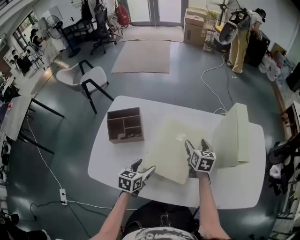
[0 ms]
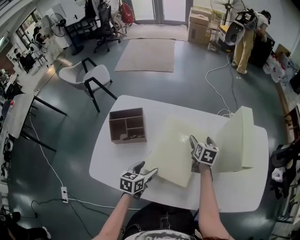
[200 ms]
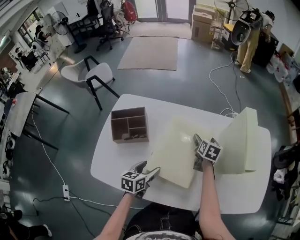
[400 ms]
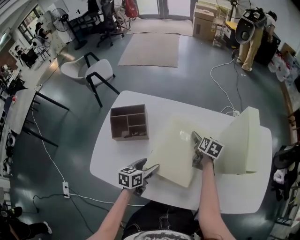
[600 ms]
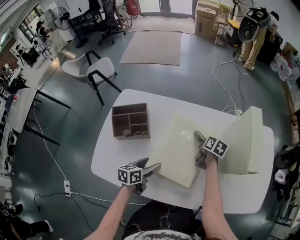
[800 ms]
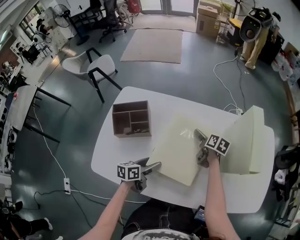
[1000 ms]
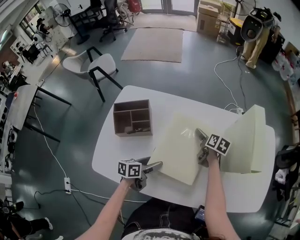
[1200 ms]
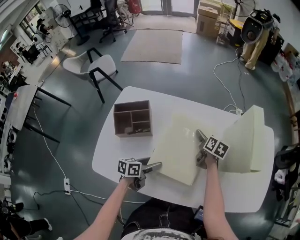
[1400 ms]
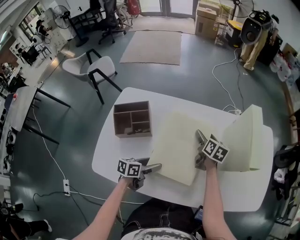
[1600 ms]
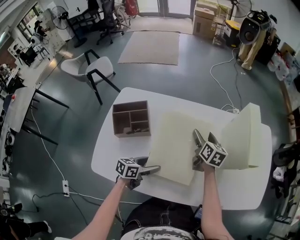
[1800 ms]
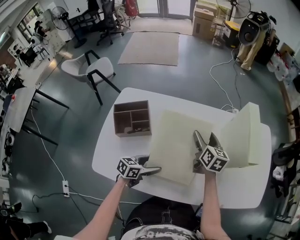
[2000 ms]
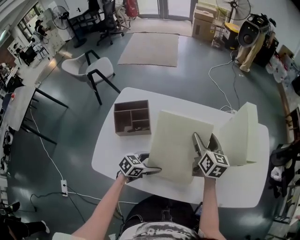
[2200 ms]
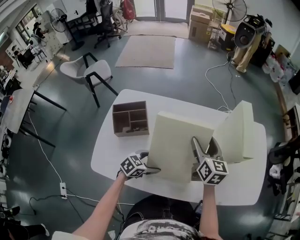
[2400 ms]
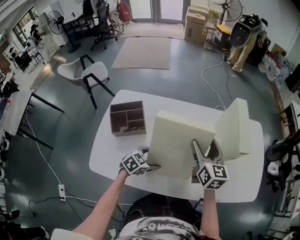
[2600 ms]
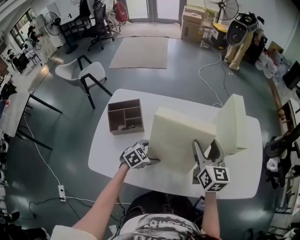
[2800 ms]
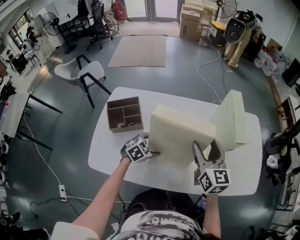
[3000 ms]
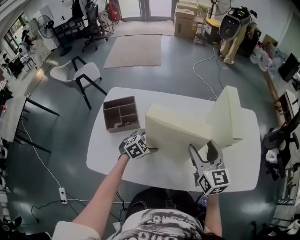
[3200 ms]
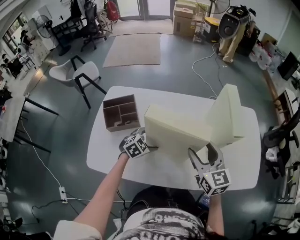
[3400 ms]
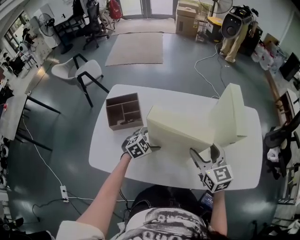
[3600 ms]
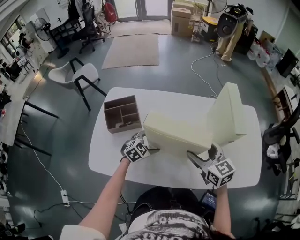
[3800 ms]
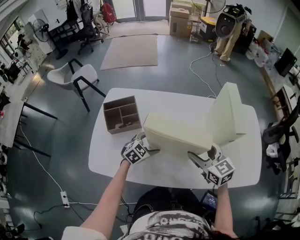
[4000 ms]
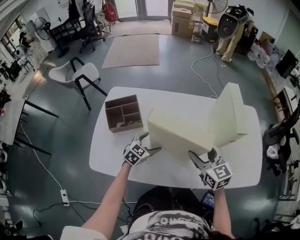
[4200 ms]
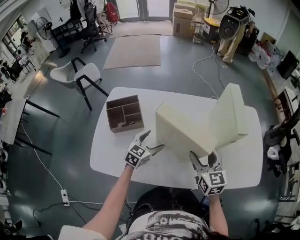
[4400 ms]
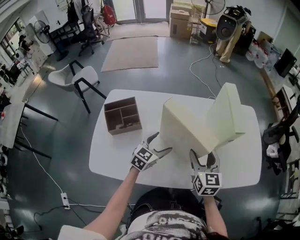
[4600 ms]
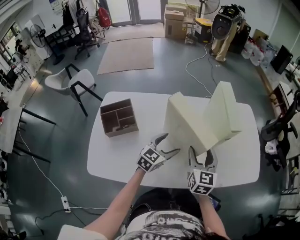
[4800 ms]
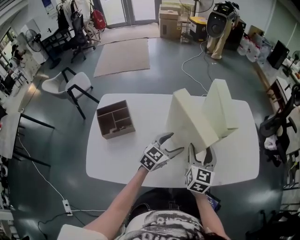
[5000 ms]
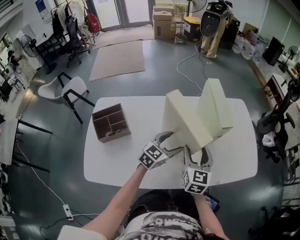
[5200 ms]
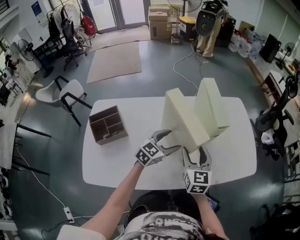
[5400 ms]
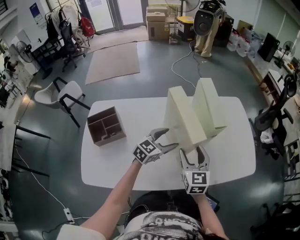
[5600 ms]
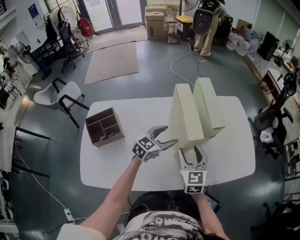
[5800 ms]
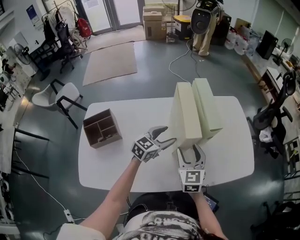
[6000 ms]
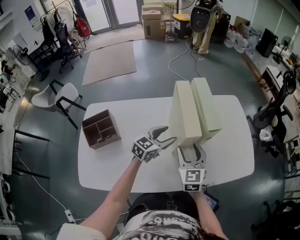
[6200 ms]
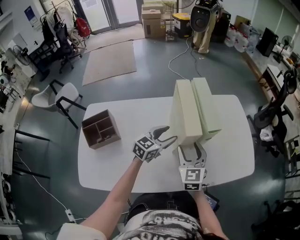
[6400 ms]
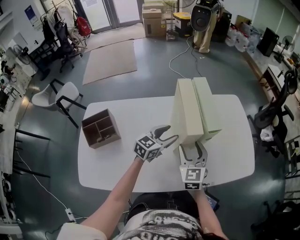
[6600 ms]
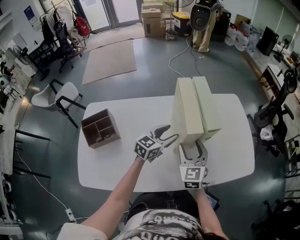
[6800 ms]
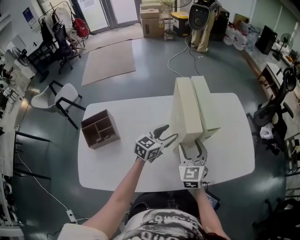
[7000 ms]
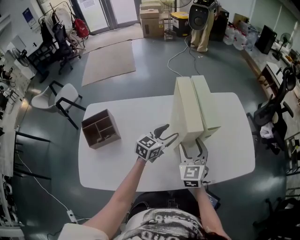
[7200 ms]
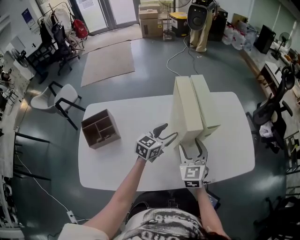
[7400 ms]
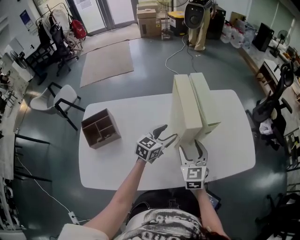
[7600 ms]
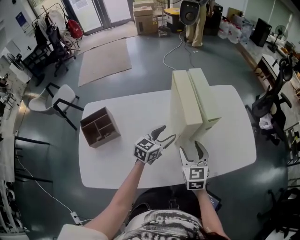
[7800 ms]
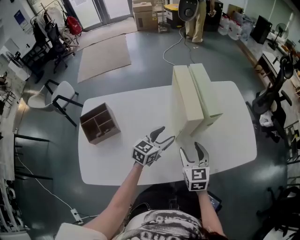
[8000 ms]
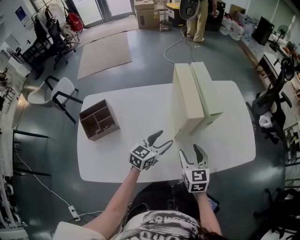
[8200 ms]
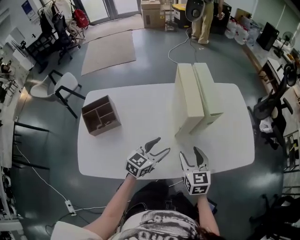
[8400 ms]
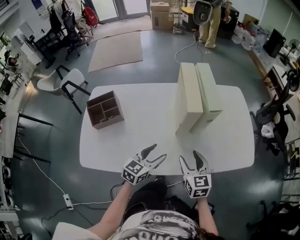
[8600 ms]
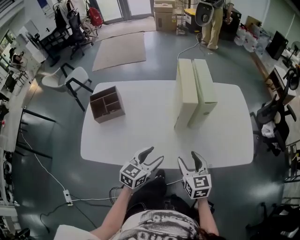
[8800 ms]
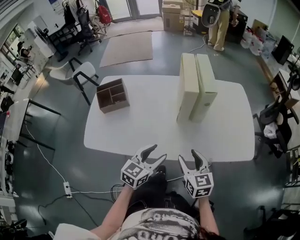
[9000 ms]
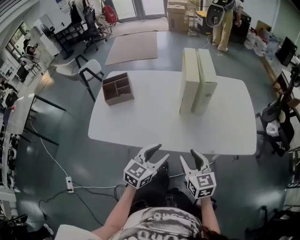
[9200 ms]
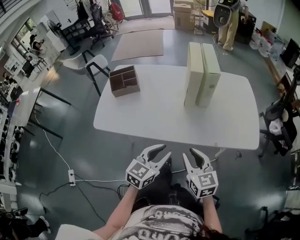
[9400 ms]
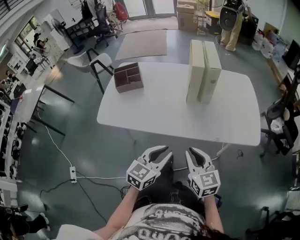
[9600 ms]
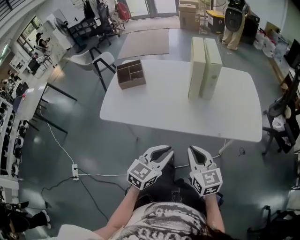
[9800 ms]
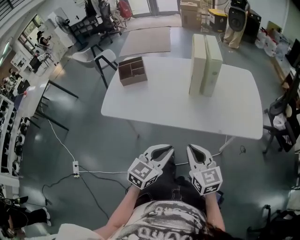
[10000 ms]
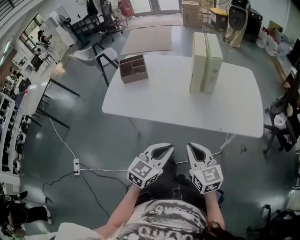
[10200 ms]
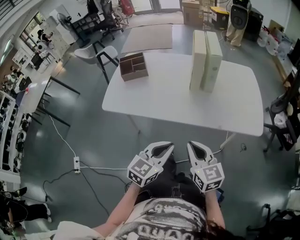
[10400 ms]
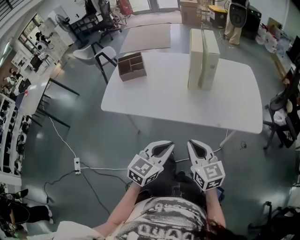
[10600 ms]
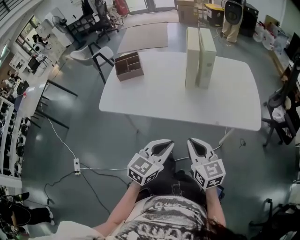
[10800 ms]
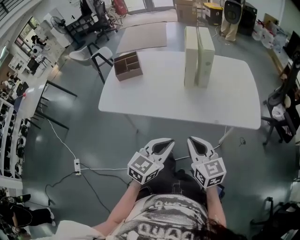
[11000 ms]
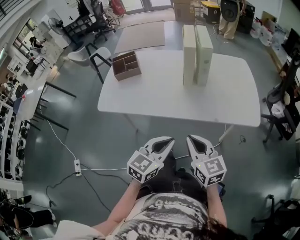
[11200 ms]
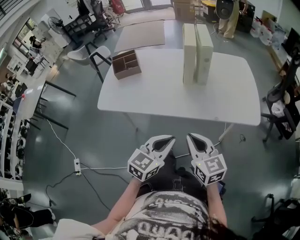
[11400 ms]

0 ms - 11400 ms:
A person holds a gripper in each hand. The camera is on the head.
0 ms - 1400 ms: The left gripper changes its angle by some 30 degrees. Meanwhile the right gripper heads downward and forward, covering some 10 cm, and turns by approximately 20 degrees.
1400 ms - 2800 ms: The right gripper shifts approximately 25 cm upward and backward, and rotates some 40 degrees, while the left gripper shifts by approximately 5 cm, and rolls clockwise, seen from behind, by some 60 degrees.
2800 ms - 4200 ms: The right gripper shifts roughly 10 cm backward and downward, and changes its angle by about 20 degrees.
4200 ms - 5600 ms: The right gripper changes place by some 5 cm, and rotates about 30 degrees, while the left gripper moves roughly 20 cm, and swivels approximately 20 degrees.
5600 ms - 7200 ms: The left gripper ends up about 5 cm from where it was.
7200 ms - 8600 ms: The right gripper is displaced backward by roughly 10 cm, and swivels some 20 degrees. The left gripper heads backward, covering approximately 20 cm.
8600 ms - 10000 ms: The grippers both shift backward by approximately 25 cm. The left gripper closes its fingers, while the right gripper changes its angle by some 20 degrees, and closes its fingers.
10000 ms - 11400 ms: The grippers make only small movements.

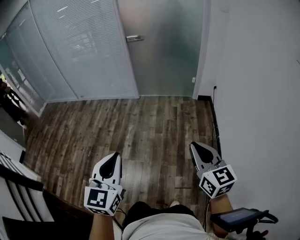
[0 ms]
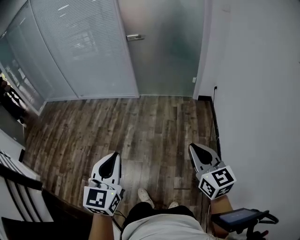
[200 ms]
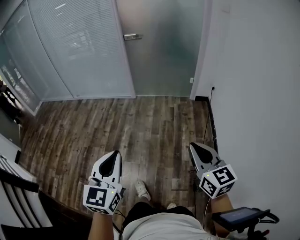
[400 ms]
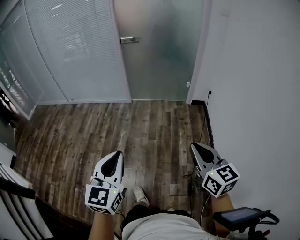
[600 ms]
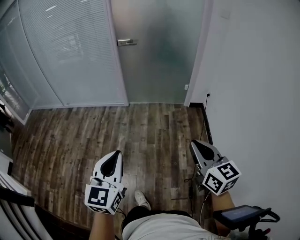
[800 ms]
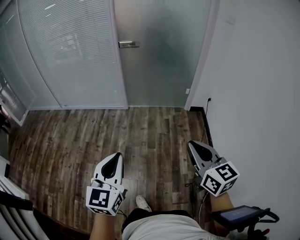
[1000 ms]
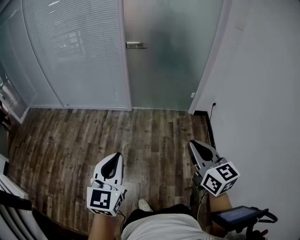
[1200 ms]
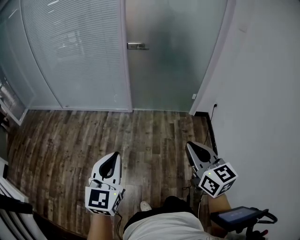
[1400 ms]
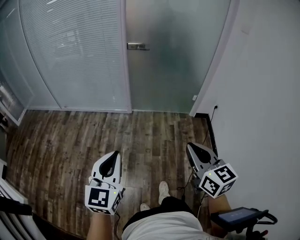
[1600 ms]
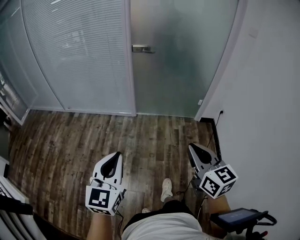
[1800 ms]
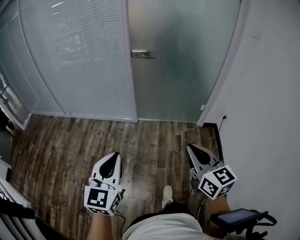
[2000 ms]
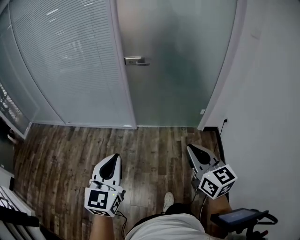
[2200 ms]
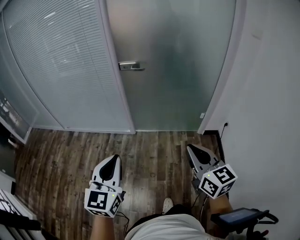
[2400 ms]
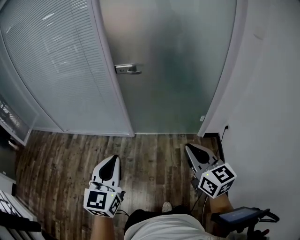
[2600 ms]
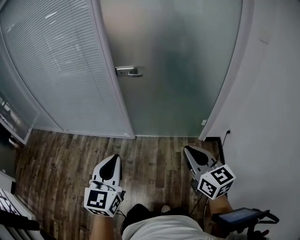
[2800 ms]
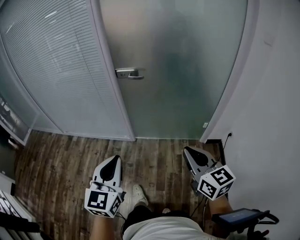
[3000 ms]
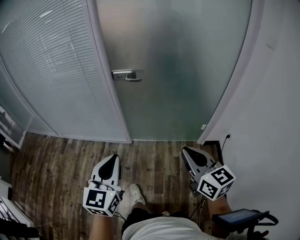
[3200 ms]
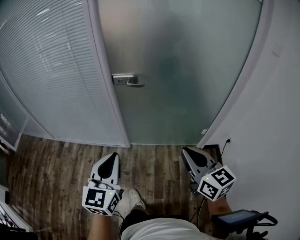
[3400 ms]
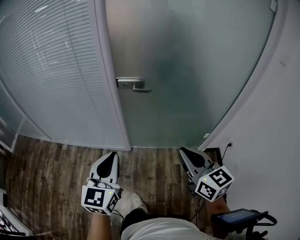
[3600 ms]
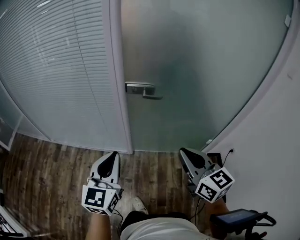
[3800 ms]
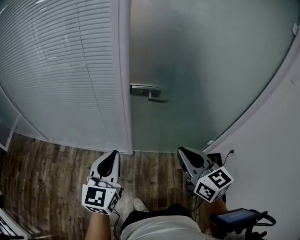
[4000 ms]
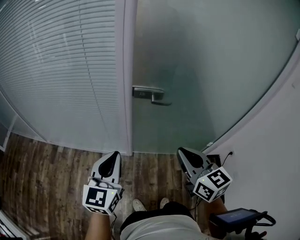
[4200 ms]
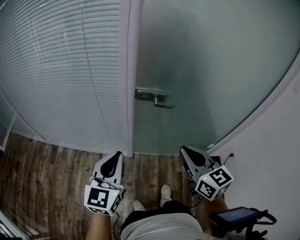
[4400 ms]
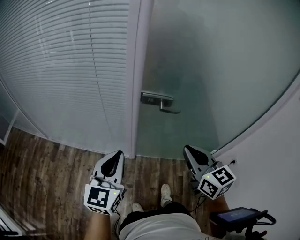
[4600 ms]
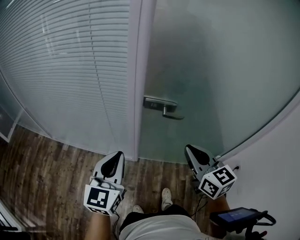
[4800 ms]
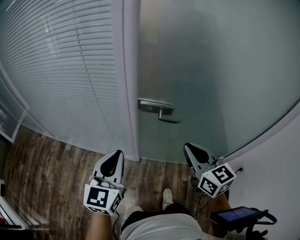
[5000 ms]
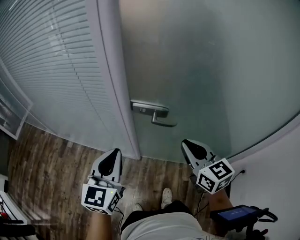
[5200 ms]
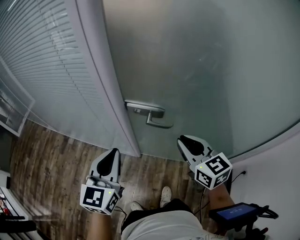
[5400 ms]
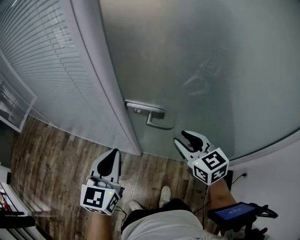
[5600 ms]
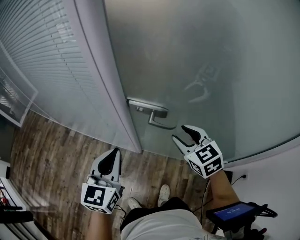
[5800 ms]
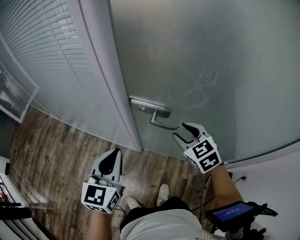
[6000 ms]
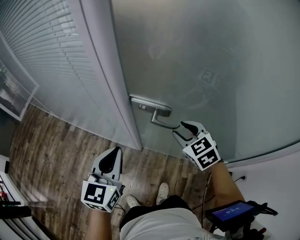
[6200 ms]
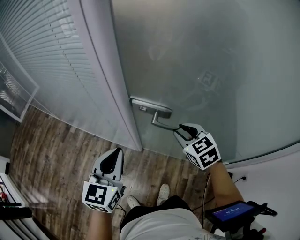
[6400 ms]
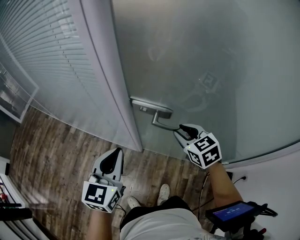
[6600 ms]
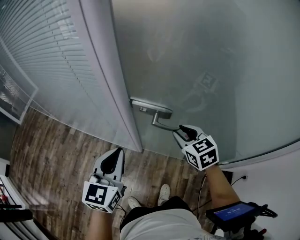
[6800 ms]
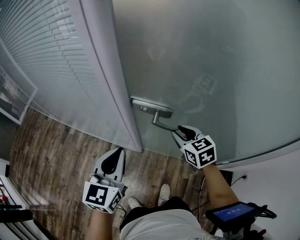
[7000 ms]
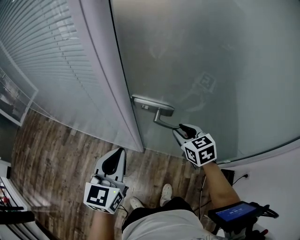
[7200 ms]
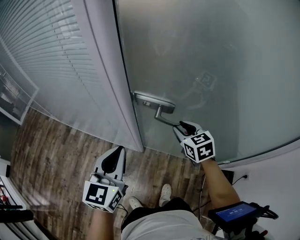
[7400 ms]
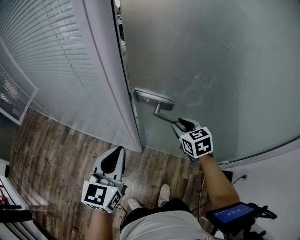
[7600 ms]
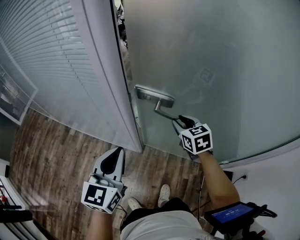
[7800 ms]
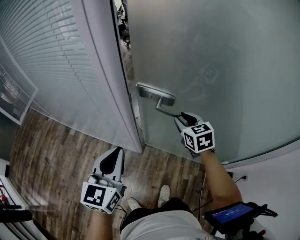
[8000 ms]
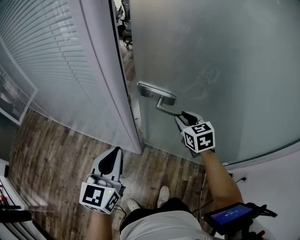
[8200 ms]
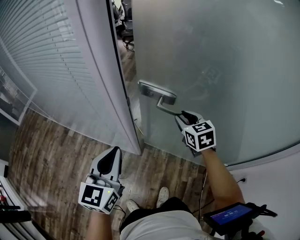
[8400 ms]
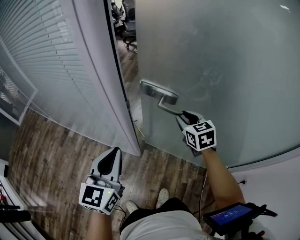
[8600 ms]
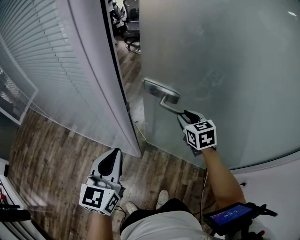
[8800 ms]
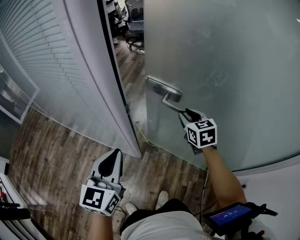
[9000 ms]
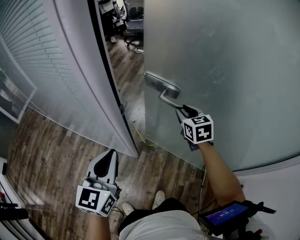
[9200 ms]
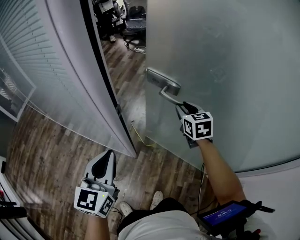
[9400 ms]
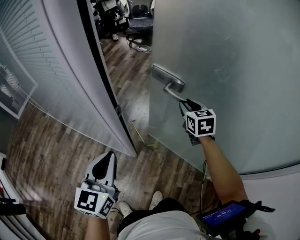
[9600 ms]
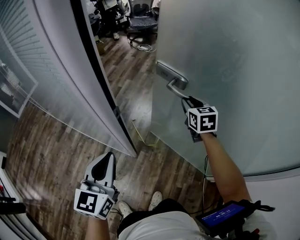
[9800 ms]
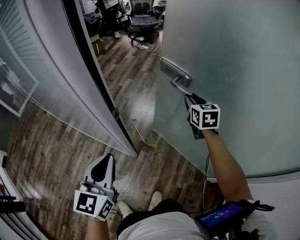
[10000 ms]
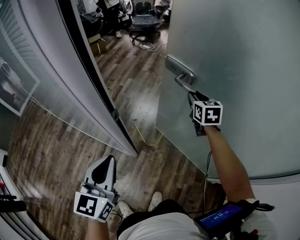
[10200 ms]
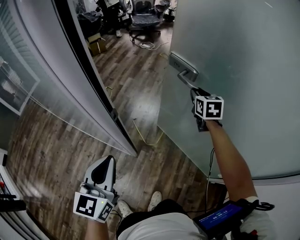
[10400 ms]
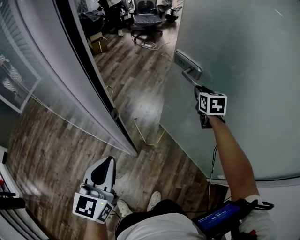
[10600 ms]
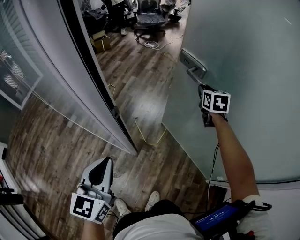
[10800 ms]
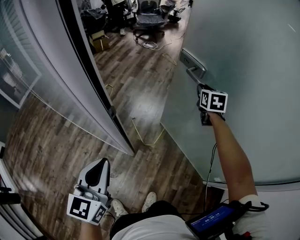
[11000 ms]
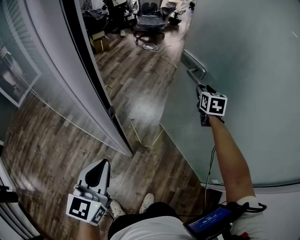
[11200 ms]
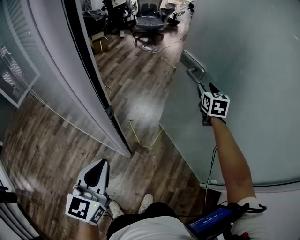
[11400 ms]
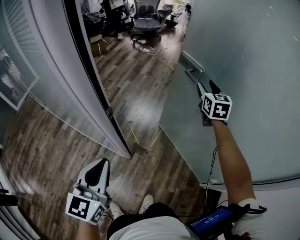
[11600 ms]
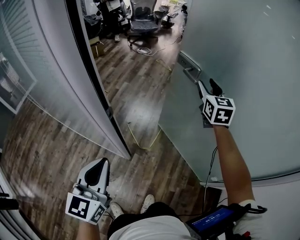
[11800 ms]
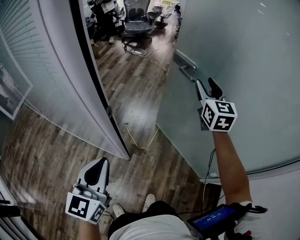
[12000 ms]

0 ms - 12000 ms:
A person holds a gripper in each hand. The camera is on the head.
0 ms - 1600 ms: The left gripper heads forward, covering about 30 cm, while the right gripper heads forward and to the left, covering approximately 30 cm.
1600 ms - 3000 ms: Both grippers move forward, some 35 cm.
3000 ms - 4400 ms: Both grippers travel together forward and to the left, some 35 cm.
4400 ms - 6000 ms: The right gripper moves forward, downward and to the right, about 30 cm, turns by about 40 degrees, and opens its fingers. The left gripper shifts about 15 cm forward, to the right and downward.
6000 ms - 7600 ms: The right gripper shifts roughly 5 cm forward.
7600 ms - 9000 ms: The right gripper goes about 10 cm forward and to the right.
9000 ms - 10400 ms: The right gripper moves forward and to the right, about 20 cm.
10400 ms - 12000 ms: The right gripper travels upward by approximately 15 cm, and changes its angle by some 30 degrees.
